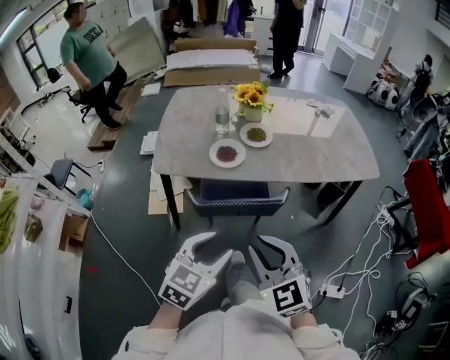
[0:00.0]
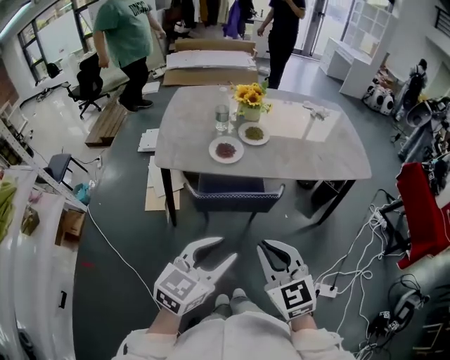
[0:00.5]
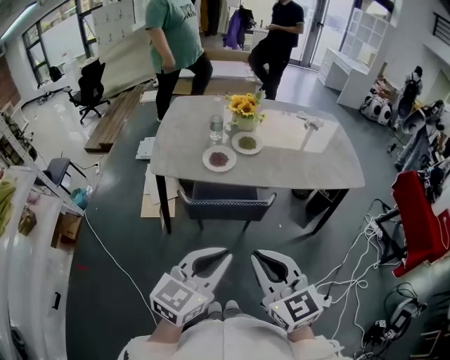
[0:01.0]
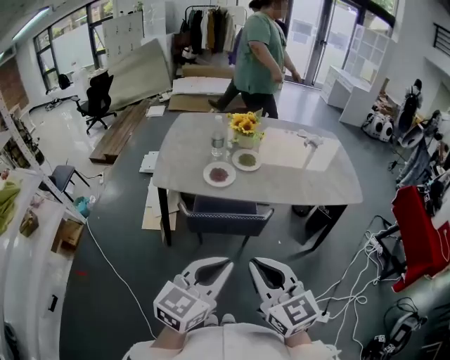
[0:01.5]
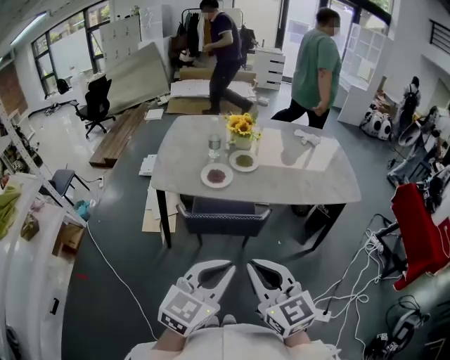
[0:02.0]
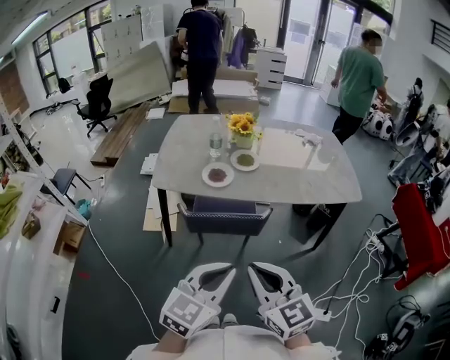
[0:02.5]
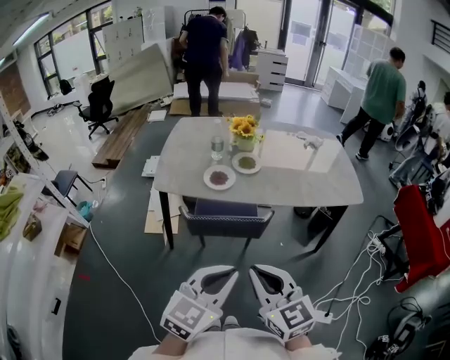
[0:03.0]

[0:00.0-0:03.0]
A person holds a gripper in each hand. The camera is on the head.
0:00.0 to 0:01.5: The left gripper shifts some 15 cm upward, to the right and backward, and closes its fingers; the right gripper travels upward, backward and to the right by roughly 10 cm, and turns by some 20 degrees.
0:01.5 to 0:03.0: The grippers move only a little.

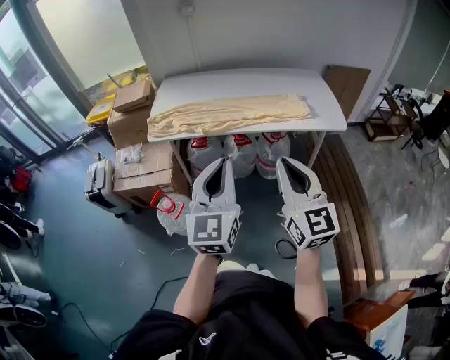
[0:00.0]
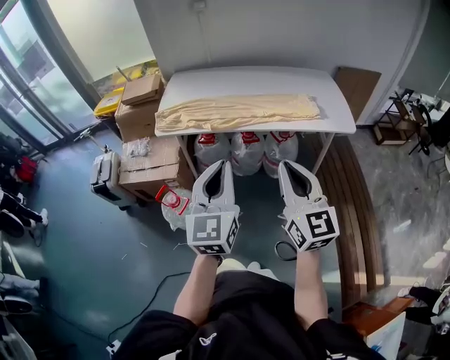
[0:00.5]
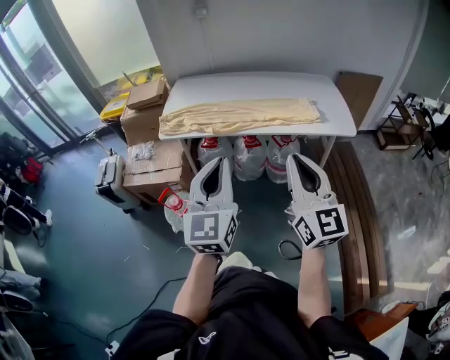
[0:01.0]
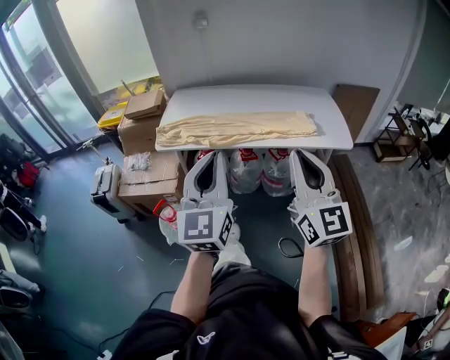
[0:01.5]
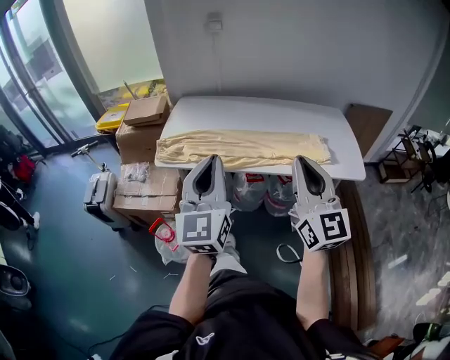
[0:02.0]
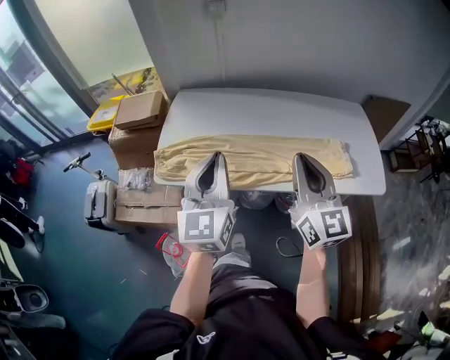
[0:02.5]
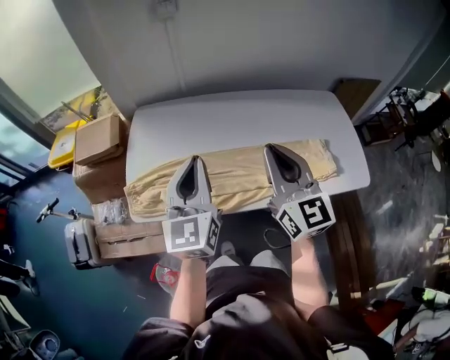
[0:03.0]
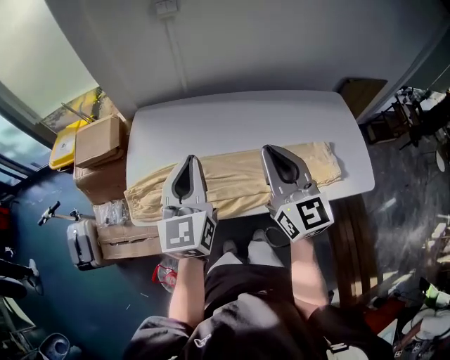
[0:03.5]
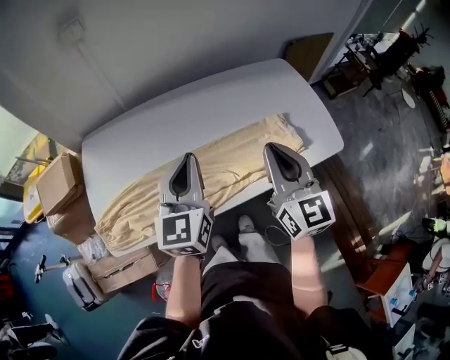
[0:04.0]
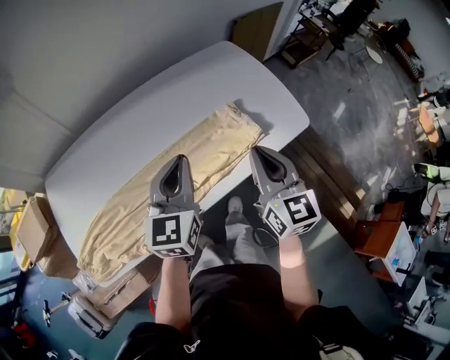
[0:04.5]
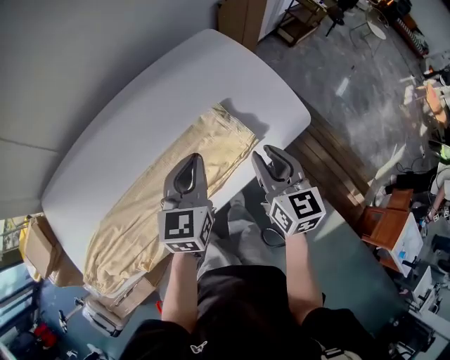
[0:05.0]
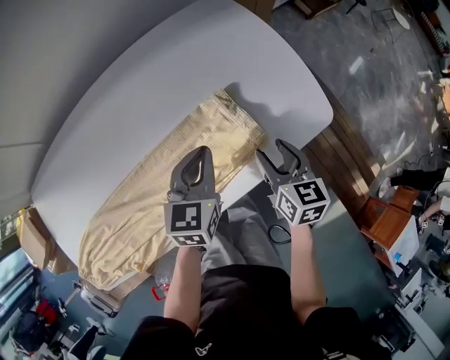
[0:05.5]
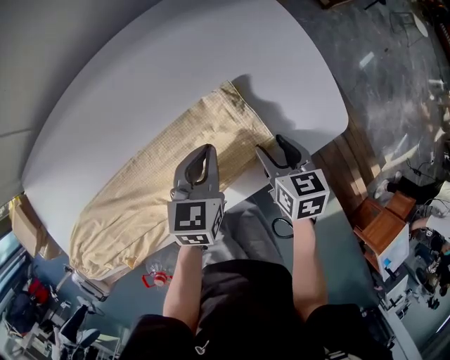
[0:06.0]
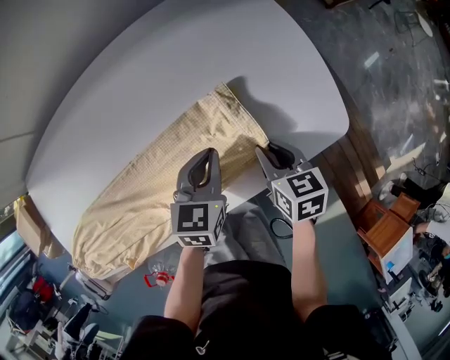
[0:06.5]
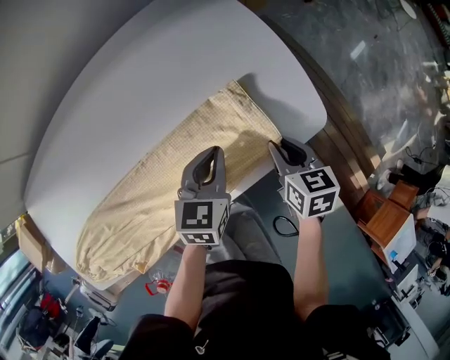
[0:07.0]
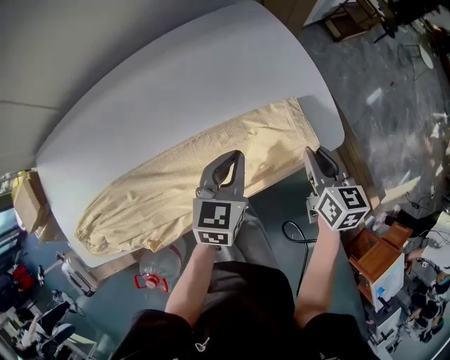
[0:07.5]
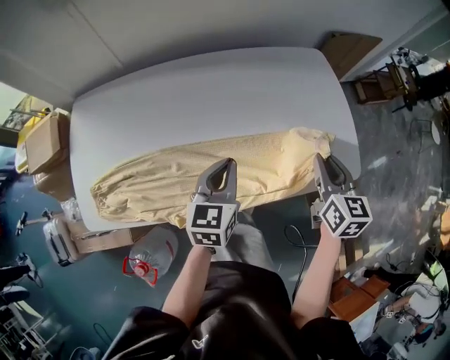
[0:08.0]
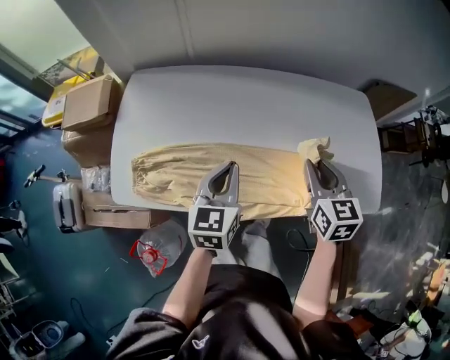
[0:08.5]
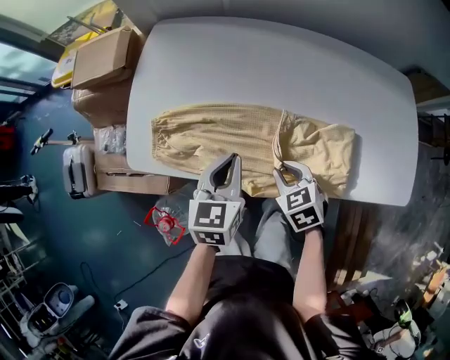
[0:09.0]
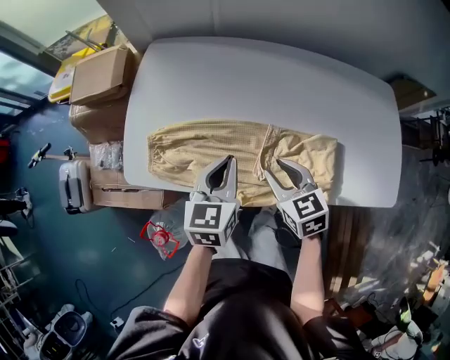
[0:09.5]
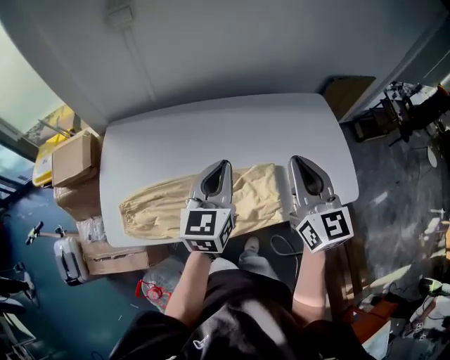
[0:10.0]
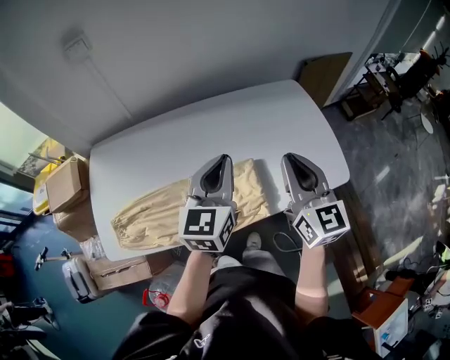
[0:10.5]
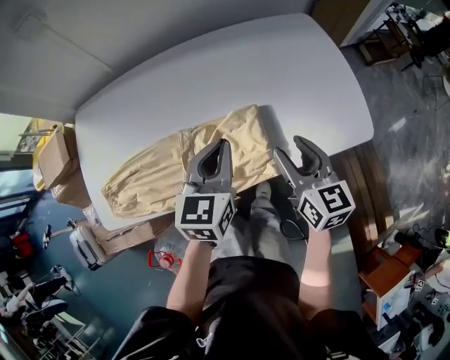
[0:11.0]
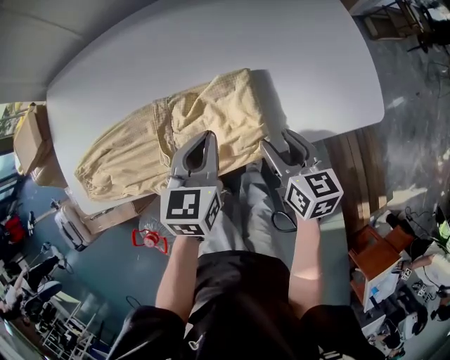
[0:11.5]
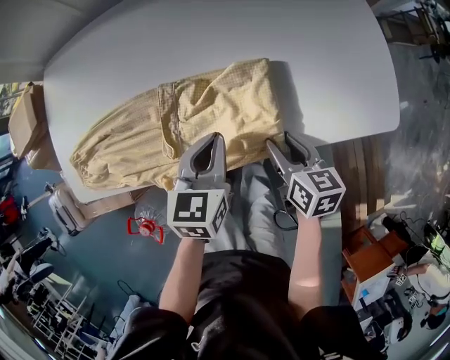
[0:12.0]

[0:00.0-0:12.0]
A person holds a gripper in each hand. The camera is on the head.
0:00.0 to 0:02.0: The grippers both shift forward by some 15 cm.
0:02.0 to 0:04.0: The two grippers go about 35 cm forward. The left gripper swivels some 30 degrees; the right gripper swivels approximately 30 degrees.
0:04.0 to 0:06.0: The left gripper goes roughly 40 cm to the right, downward and forward, and swivels about 40 degrees, while the right gripper shifts some 40 cm downward, to the right and forward, angles its fingers downward, by roughly 40 degrees, and opens its fingers.
0:06.0 to 0:08.0: The right gripper heads upward, covering about 20 cm, turns by roughly 20 degrees, and closes; the left gripper moves to the left, upward and backward, some 20 cm, and turns by approximately 20 degrees.
0:08.0 to 0:10.0: The right gripper changes its angle by about 30 degrees, while the left gripper heads upward, covering roughly 15 cm.
0:10.0 to 0:12.0: The two grippers go about 30 cm downward. The left gripper rotates approximately 30 degrees, while the right gripper tips its fingers downward by approximately 40 degrees, and opens up.

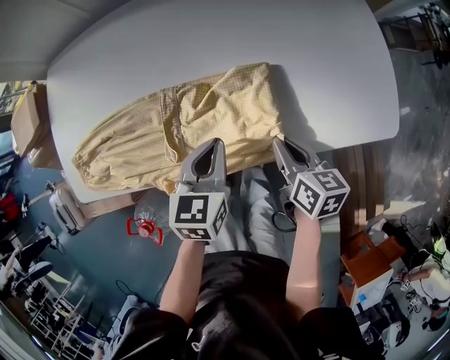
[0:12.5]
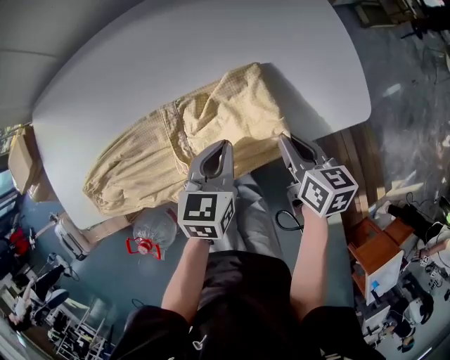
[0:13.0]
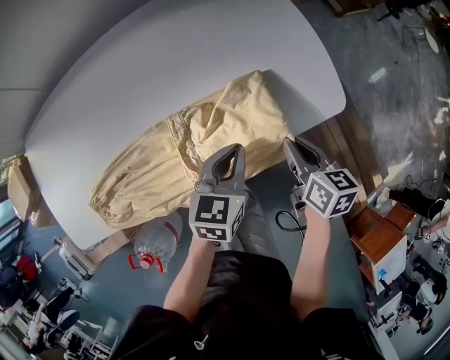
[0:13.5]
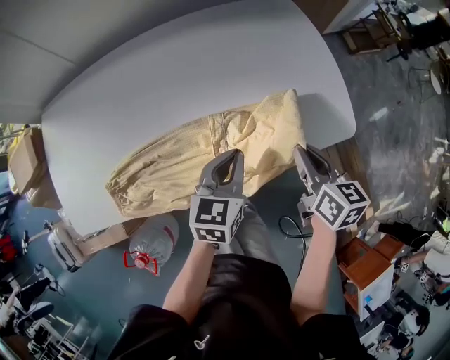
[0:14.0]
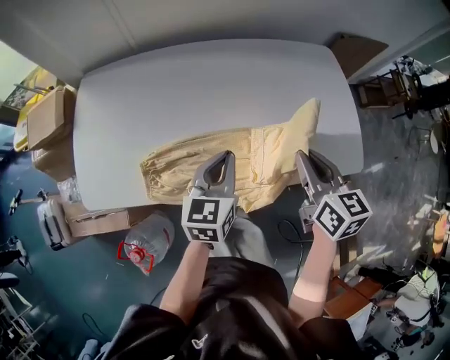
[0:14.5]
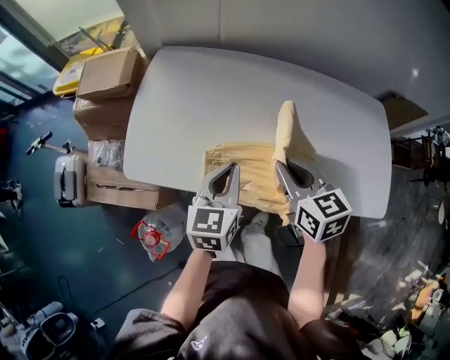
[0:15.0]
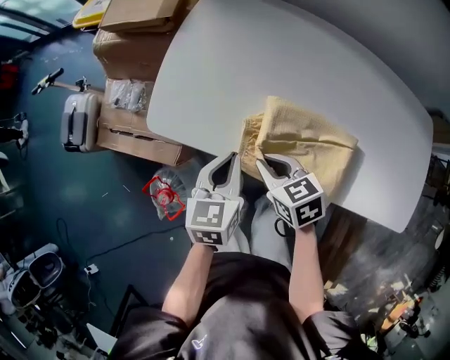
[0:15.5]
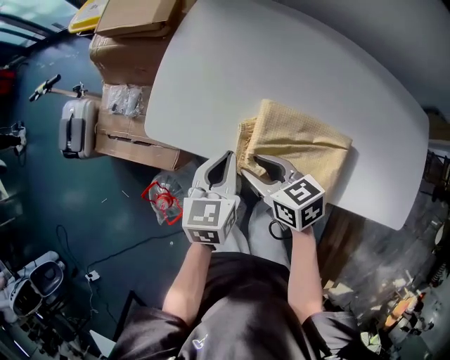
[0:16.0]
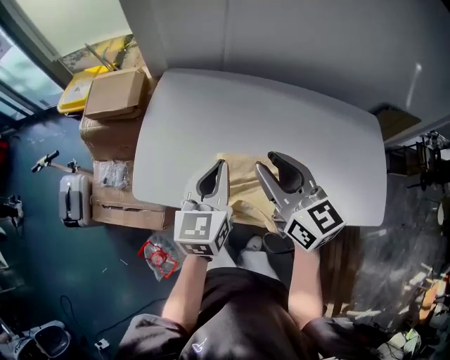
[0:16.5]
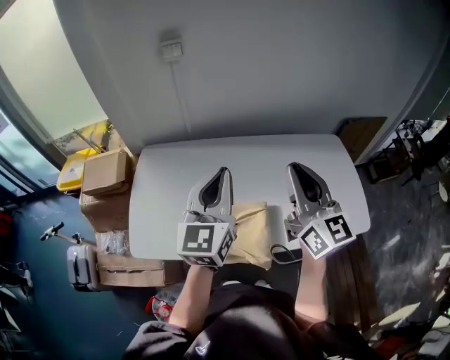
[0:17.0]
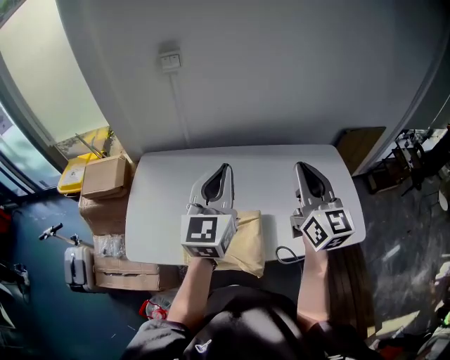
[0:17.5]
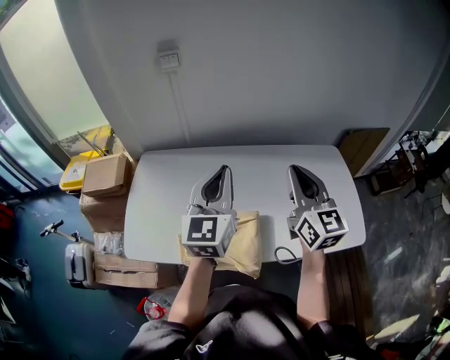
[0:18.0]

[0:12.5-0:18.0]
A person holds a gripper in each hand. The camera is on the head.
0:12.5 to 0:14.5: The right gripper goes roughly 20 cm upward, and swivels some 20 degrees, while the left gripper goes roughly 10 cm upward, and reaches about 20 cm to the right, then returns.
0:14.5 to 0:16.0: The right gripper moves approximately 50 cm, rotates about 50 degrees, and opens up; the left gripper ends up approximately 35 cm from where it was, and changes its angle by approximately 30 degrees.
0:16.0 to 0:18.0: Both grippers move upward, some 35 cm. The left gripper tips its fingers upward by about 40 degrees; the right gripper points its fingers some 40 degrees further upward, and closes.

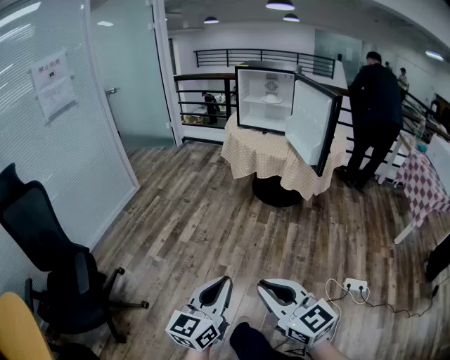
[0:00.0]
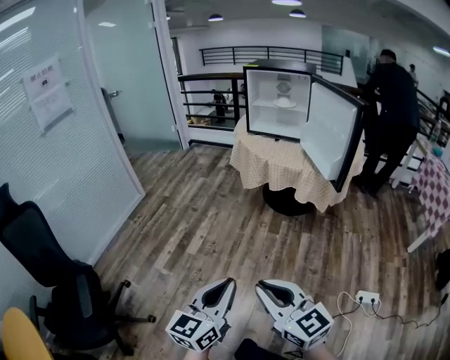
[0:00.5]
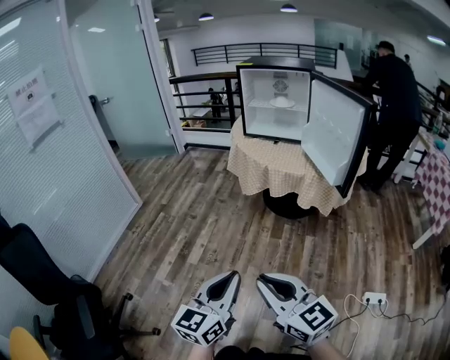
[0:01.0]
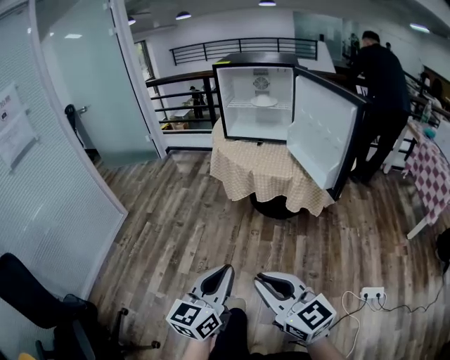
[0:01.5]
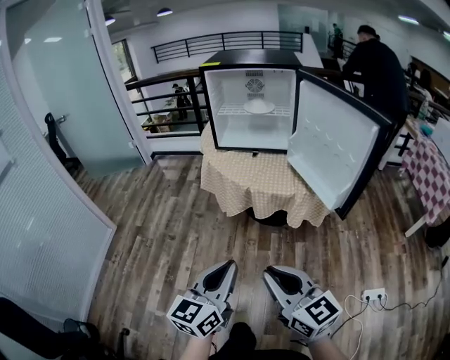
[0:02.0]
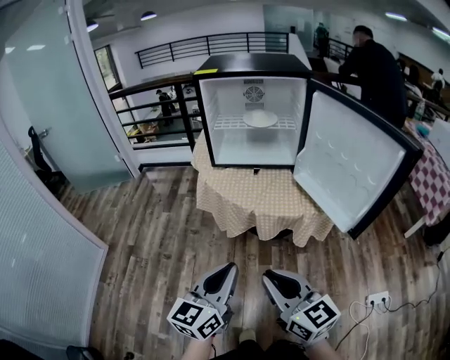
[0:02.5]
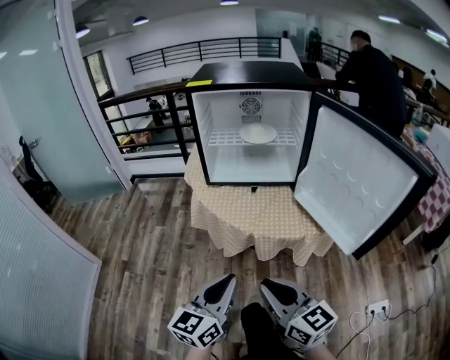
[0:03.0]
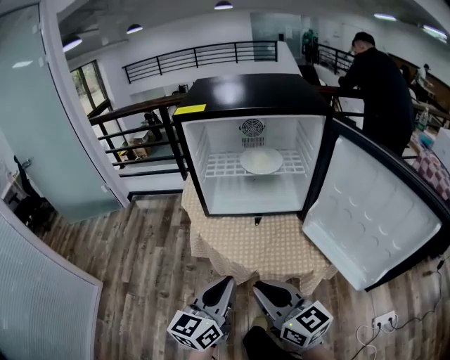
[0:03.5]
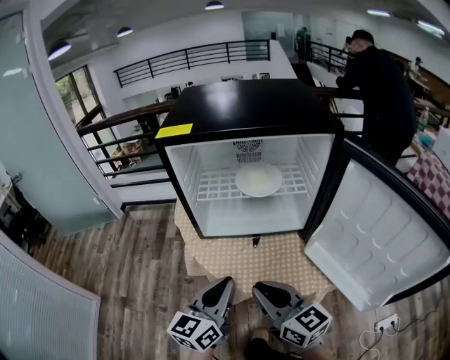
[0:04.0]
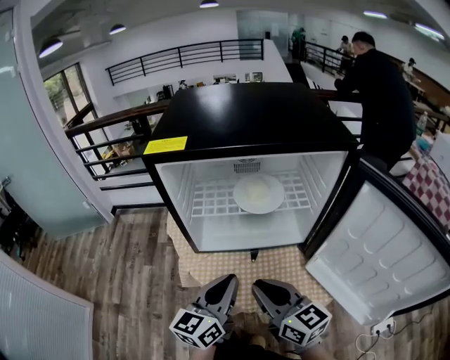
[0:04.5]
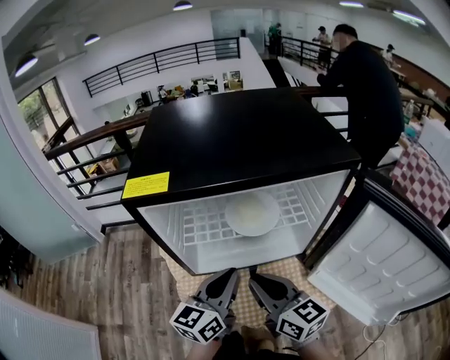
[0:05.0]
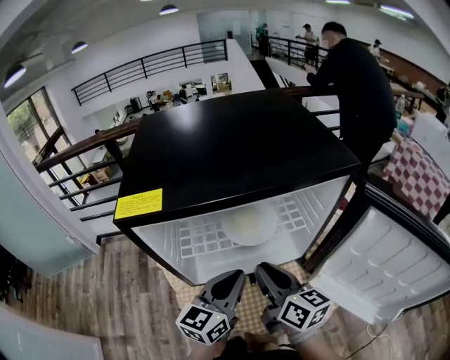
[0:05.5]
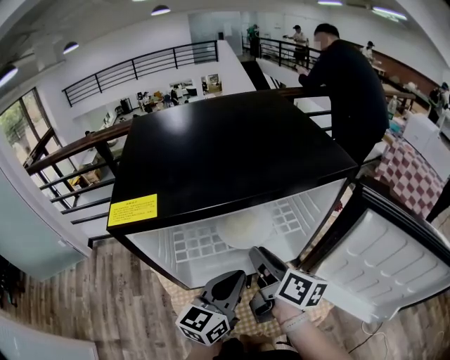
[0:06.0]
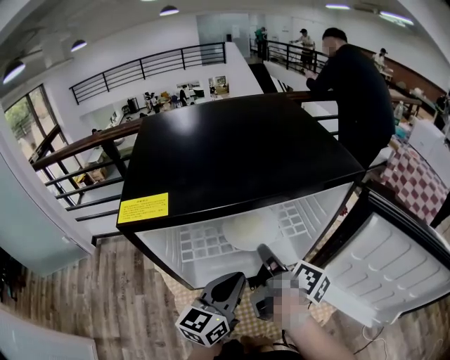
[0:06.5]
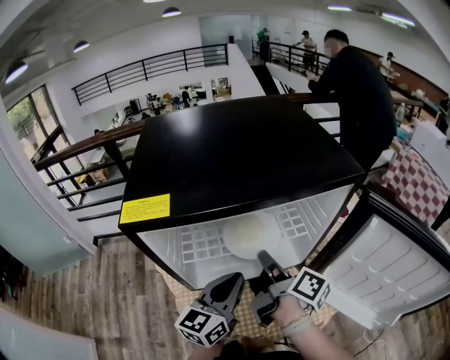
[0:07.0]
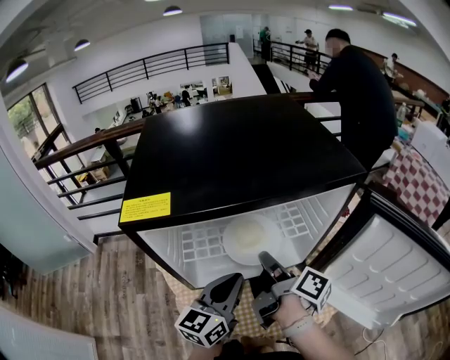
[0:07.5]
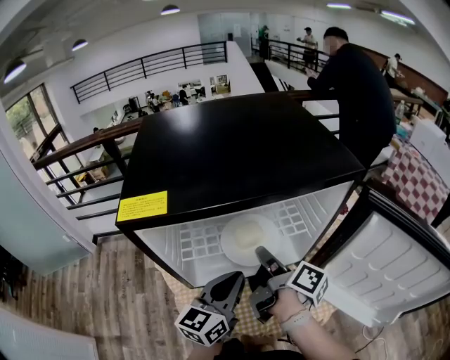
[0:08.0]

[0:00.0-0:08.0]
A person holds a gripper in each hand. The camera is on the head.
0:00.0 to 0:02.0: The two grippers travel together, forward, about 50 cm.
0:02.0 to 0:04.0: The pair of grippers is taken forward, about 40 cm.
0:04.0 to 0:06.0: Both grippers move forward, about 20 cm. The left gripper turns by about 20 degrees; the right gripper rotates some 50 degrees.
0:06.0 to 0:08.0: The right gripper swivels roughly 30 degrees.
